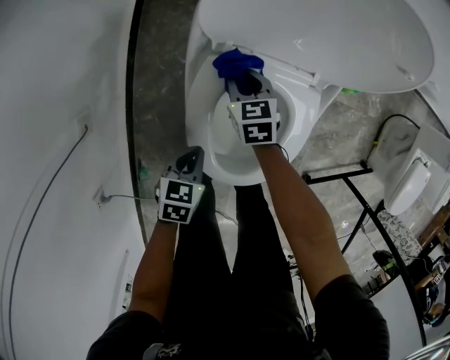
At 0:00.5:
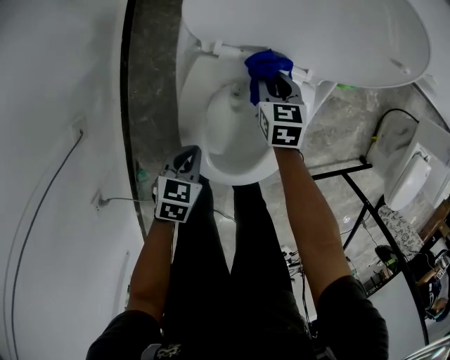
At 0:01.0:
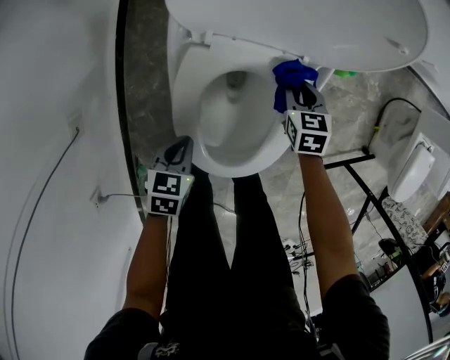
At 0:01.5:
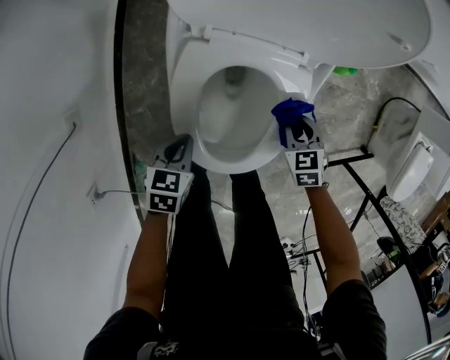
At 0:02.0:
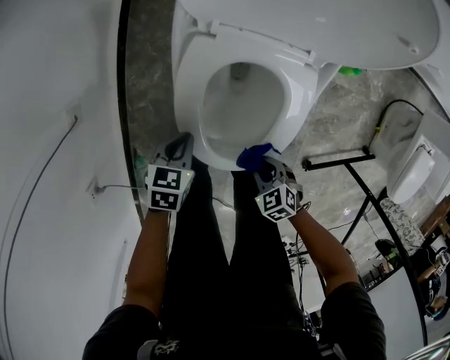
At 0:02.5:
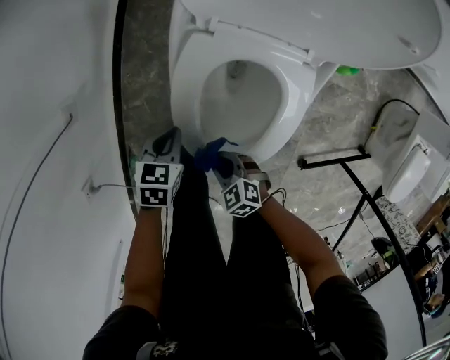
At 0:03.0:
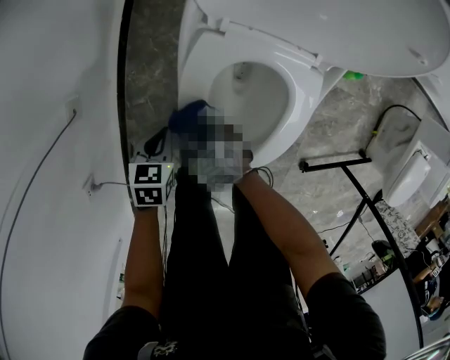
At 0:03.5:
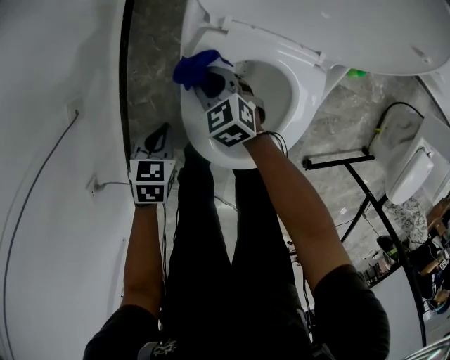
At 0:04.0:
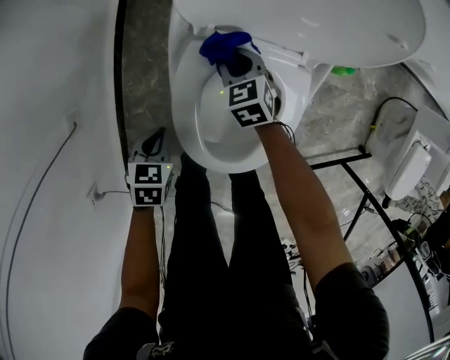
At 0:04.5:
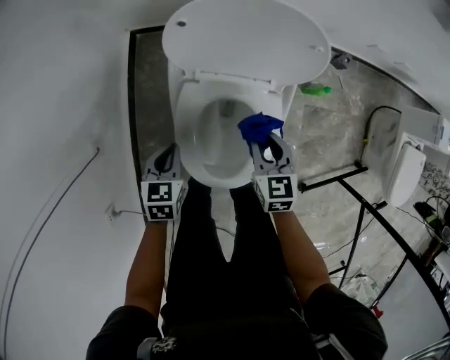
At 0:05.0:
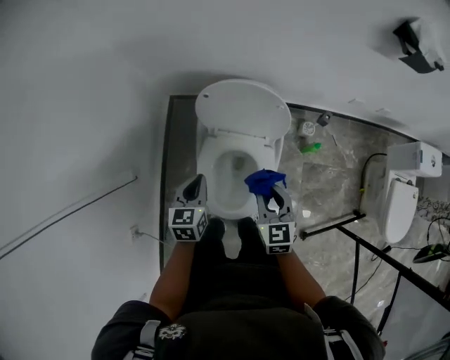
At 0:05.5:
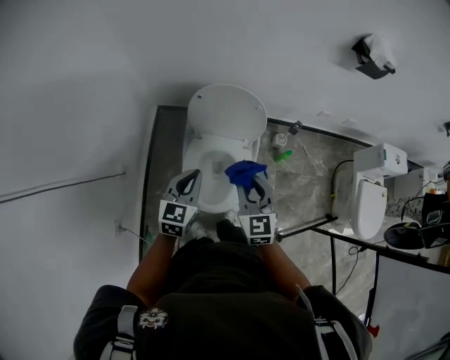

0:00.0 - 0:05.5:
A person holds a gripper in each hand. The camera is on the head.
0:00.0 - 0:02.0: The right gripper shifts by roughly 35 cm, and changes its angle by roughly 30 degrees.
0:02.0 - 0:03.5: The right gripper moves forward and to the left, roughly 30 cm, while the left gripper heads to the left, covering roughly 5 cm.
0:03.5 - 0:05.5: The right gripper goes approximately 50 cm upward and to the right, and tips its fingers upward by roughly 30 degrees, while the left gripper moves upward, about 40 cm, and tilts its fingers roughly 40 degrees upward.

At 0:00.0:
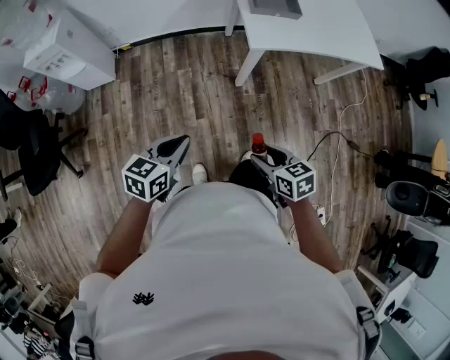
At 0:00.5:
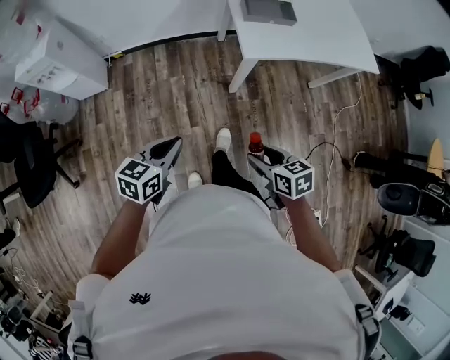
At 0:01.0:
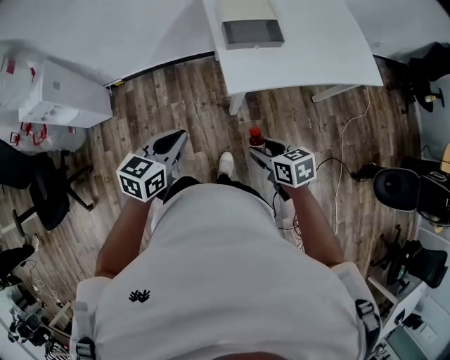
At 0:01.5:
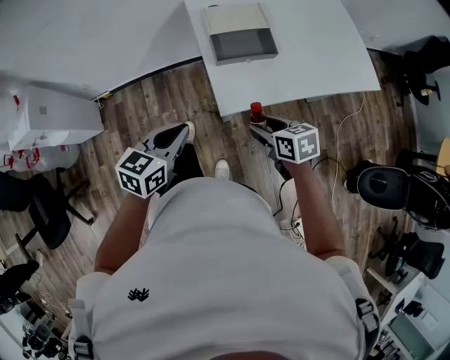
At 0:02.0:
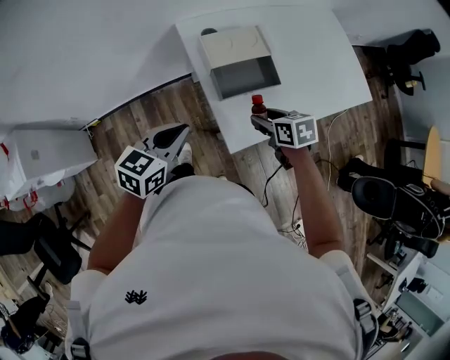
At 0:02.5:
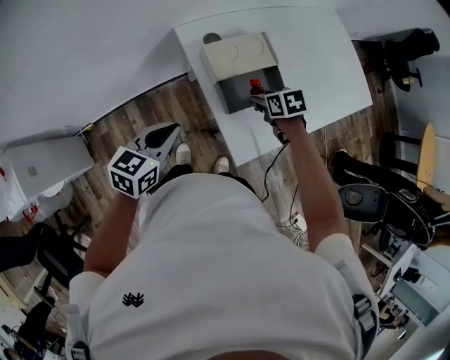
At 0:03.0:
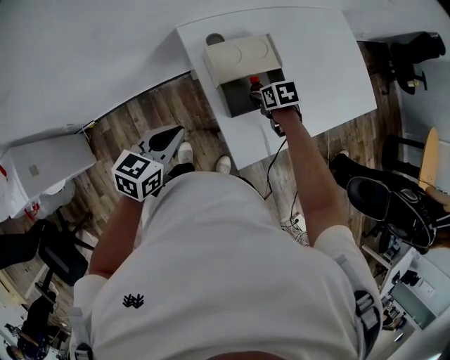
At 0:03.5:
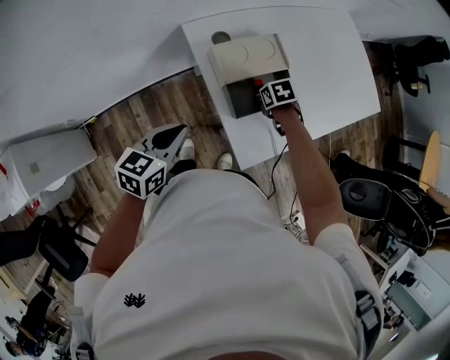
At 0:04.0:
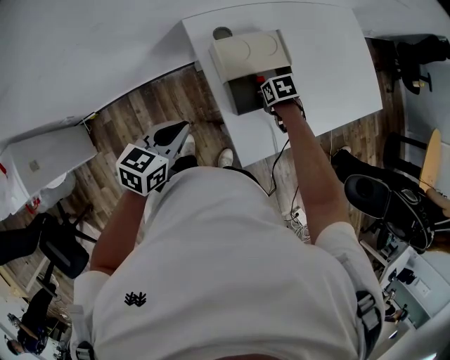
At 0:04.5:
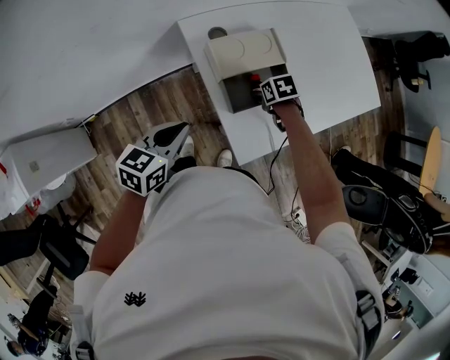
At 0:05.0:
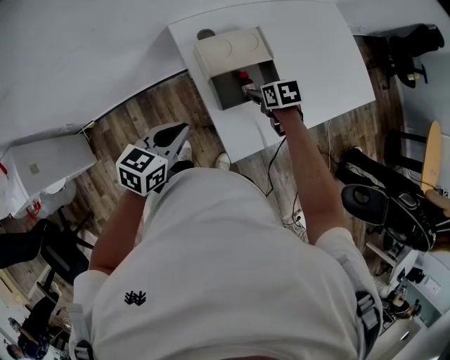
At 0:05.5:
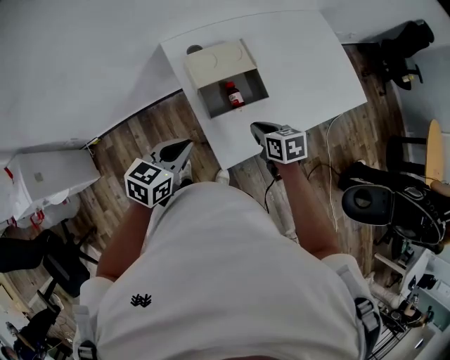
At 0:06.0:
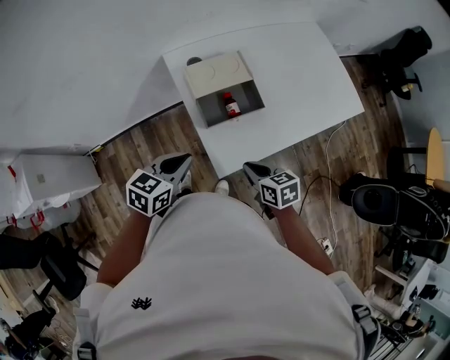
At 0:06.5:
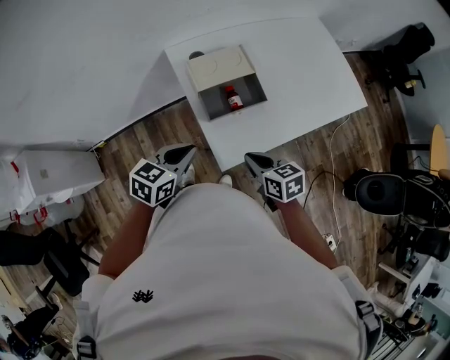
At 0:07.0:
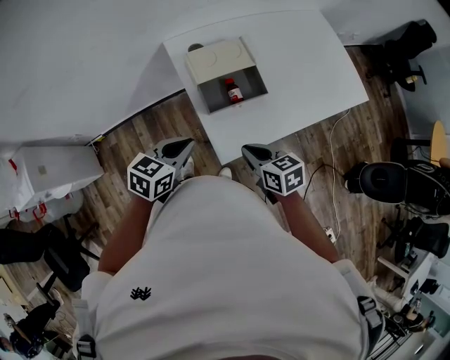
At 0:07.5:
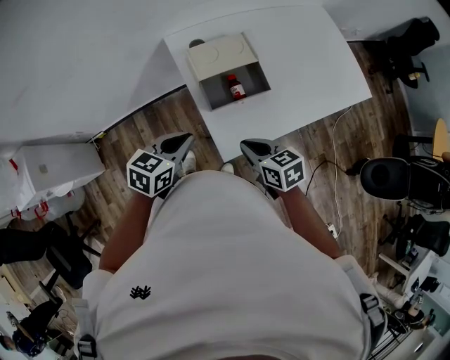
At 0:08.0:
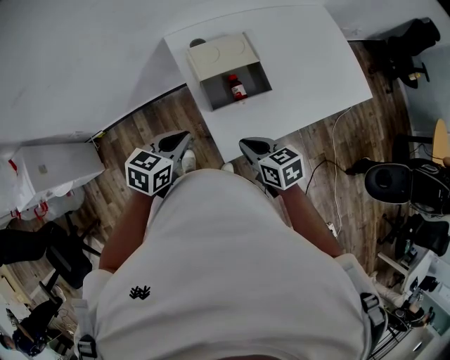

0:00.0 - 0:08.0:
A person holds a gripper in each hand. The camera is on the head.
0:00.0 - 0:02.0: The pair of grippers is taken forward, roughly 40 cm.
0:02.0 - 0:04.0: The left gripper shifts by approximately 5 cm, while the right gripper is displaced downward by roughly 10 cm, and turns by some 30 degrees.
0:04.0 - 0:06.0: The left gripper ends up approximately 10 cm from where it was. Meanwhile the right gripper moves some 25 cm, points its fingers about 30 degrees further upward, and closes up.
0:06.0 - 0:08.0: The right gripper changes place by roughly 5 cm.

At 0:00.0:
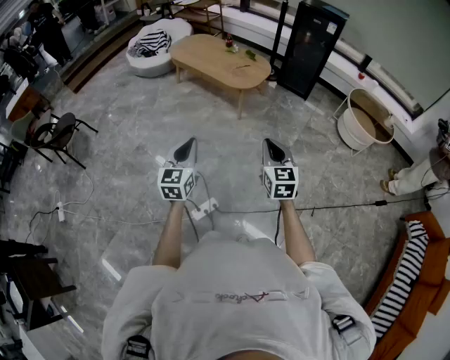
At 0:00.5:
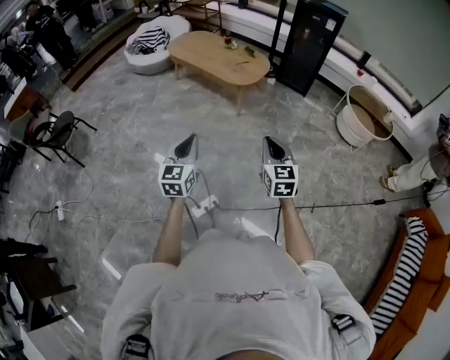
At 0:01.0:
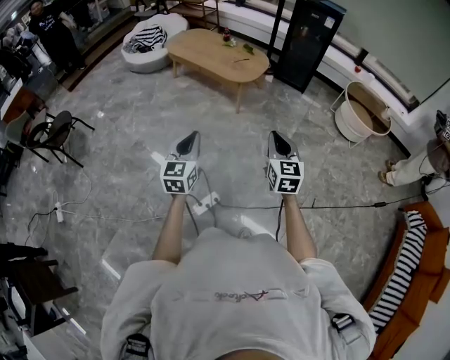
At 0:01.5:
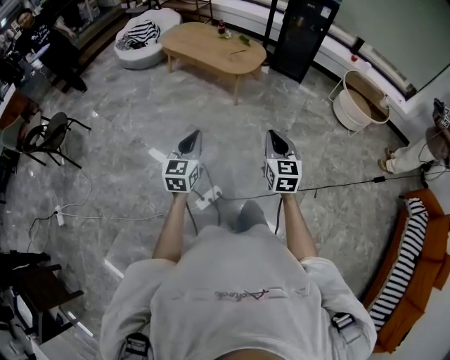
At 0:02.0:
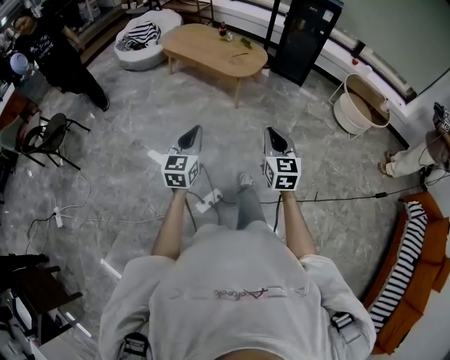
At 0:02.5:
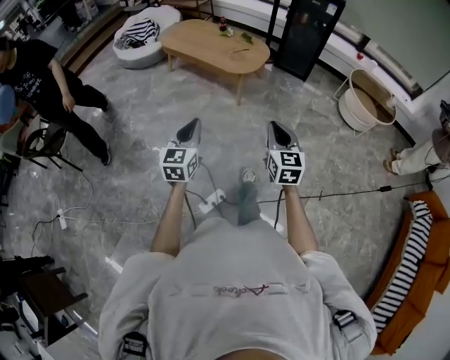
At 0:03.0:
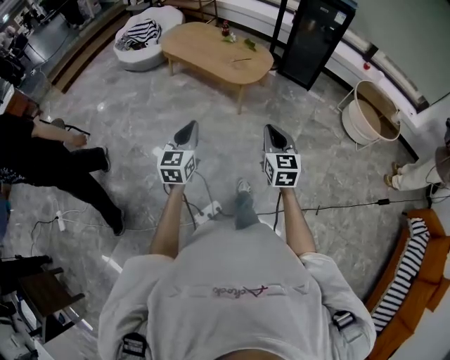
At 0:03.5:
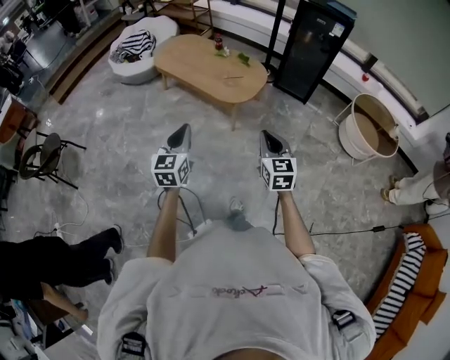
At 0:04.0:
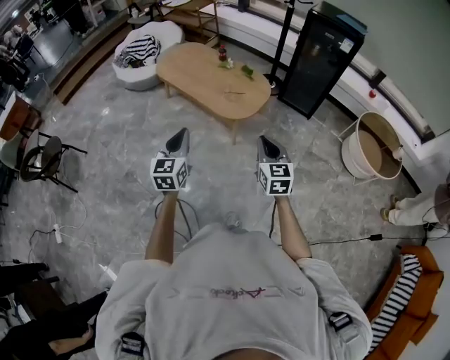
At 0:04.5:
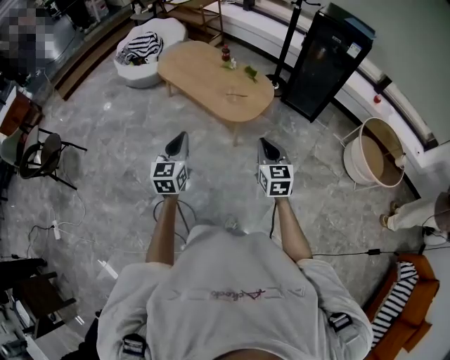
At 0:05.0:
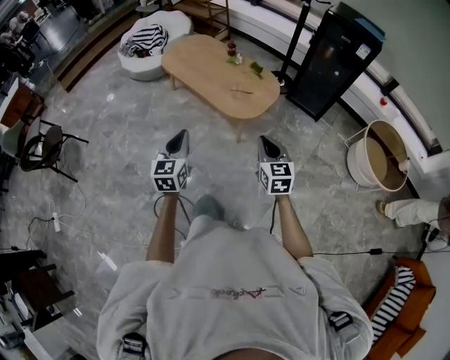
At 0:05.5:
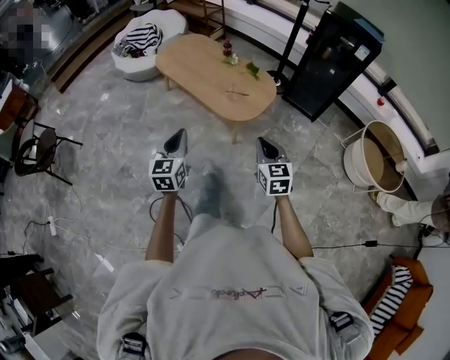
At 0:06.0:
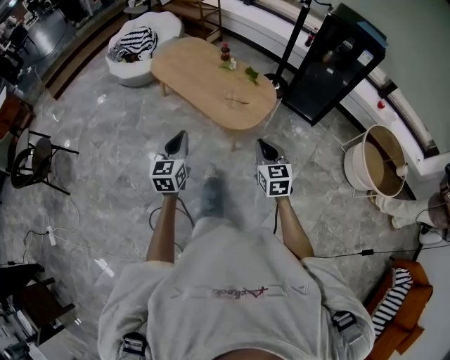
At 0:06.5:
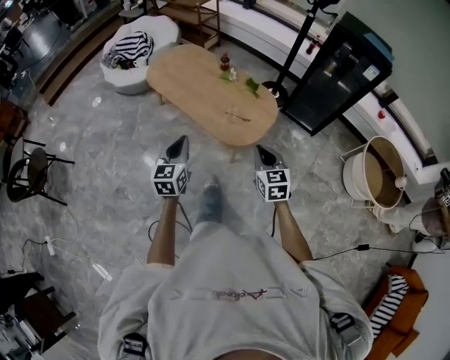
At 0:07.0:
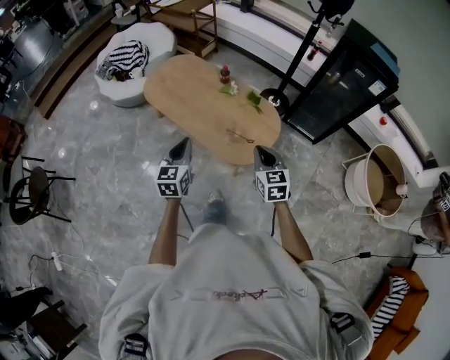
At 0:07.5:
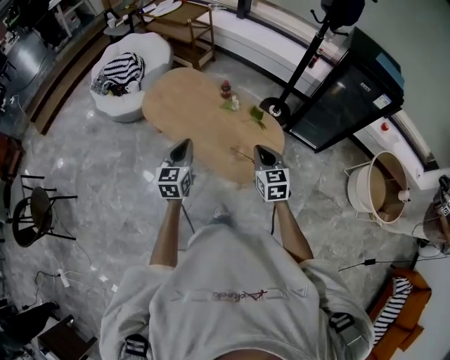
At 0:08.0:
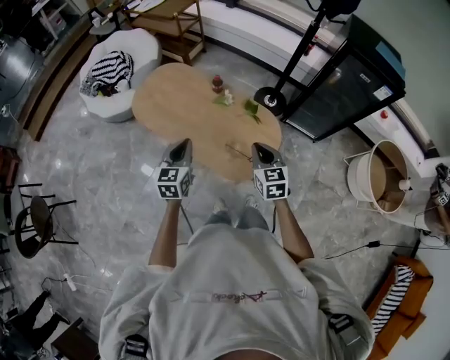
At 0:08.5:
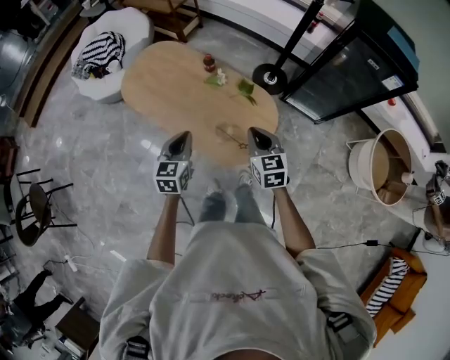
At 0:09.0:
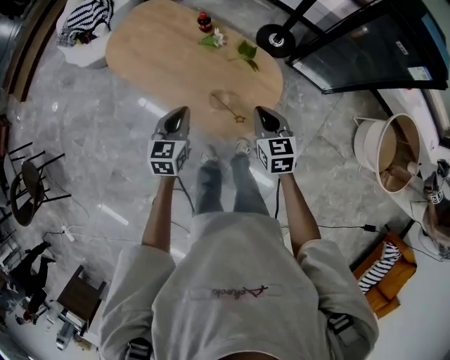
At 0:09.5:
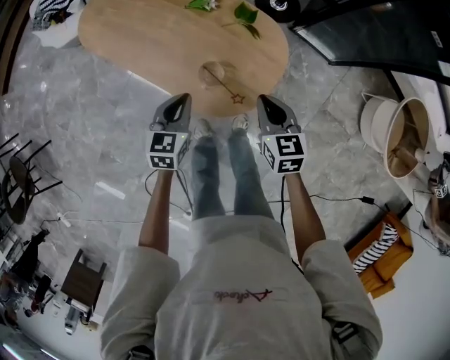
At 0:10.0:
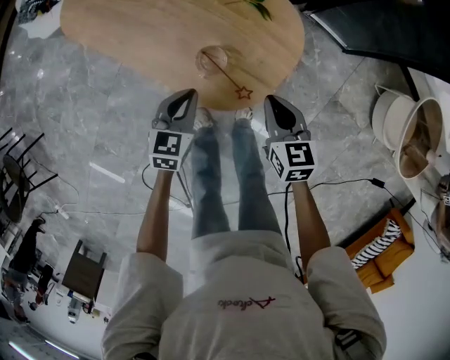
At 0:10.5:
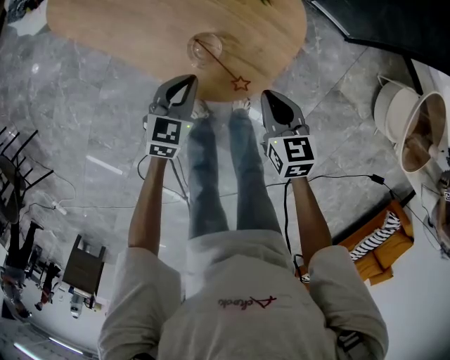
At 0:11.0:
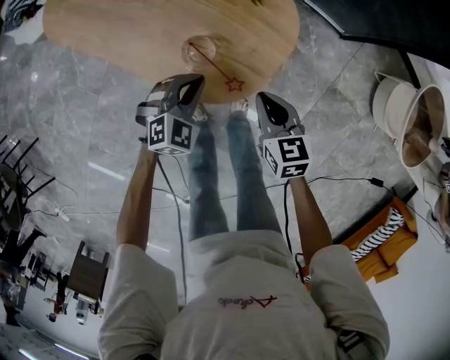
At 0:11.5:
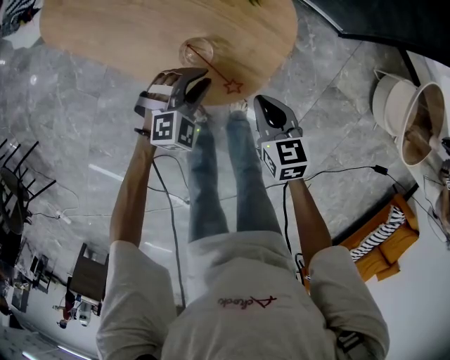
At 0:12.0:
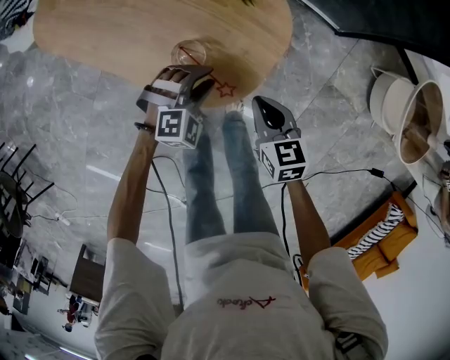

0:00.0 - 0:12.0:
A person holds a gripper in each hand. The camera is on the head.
0:00.0 - 0:02.0: The two grippers go roughly 5 cm to the left.
0:02.0 - 0:04.0: The two grippers travel together, forward, some 40 cm.
0:04.0 - 0:06.0: The grippers both shift forward and downward by roughly 20 cm.
0:06.0 - 0:08.0: The pair of grippers is taken forward, some 40 cm.
0:08.0 - 0:10.0: The right gripper moves downward, roughly 30 cm; the left gripper is displaced downward and to the right by about 40 cm, and rotates roughly 20 degrees.
0:10.0 - 0:12.0: The left gripper shifts roughly 10 cm to the right and downward, rotates around the line of its fingers by approximately 60 degrees, clockwise from behind, and opens its fingers. The right gripper shifts roughly 5 cm downward.

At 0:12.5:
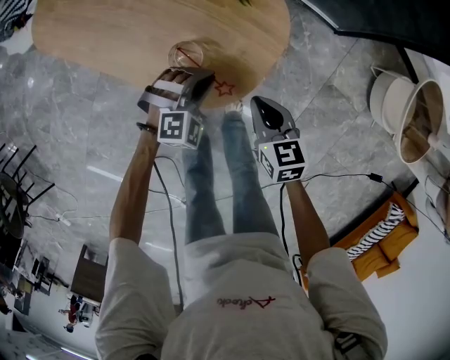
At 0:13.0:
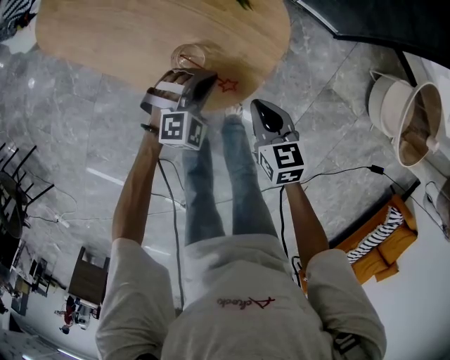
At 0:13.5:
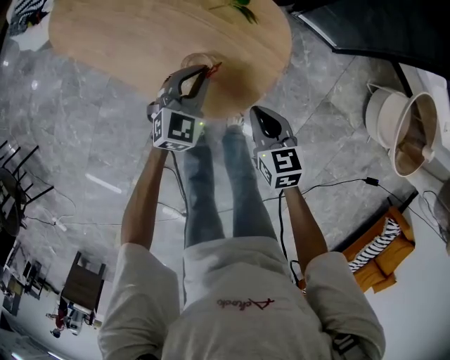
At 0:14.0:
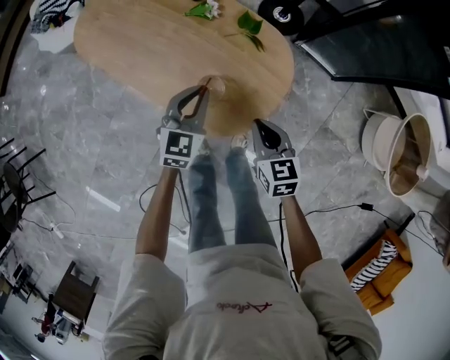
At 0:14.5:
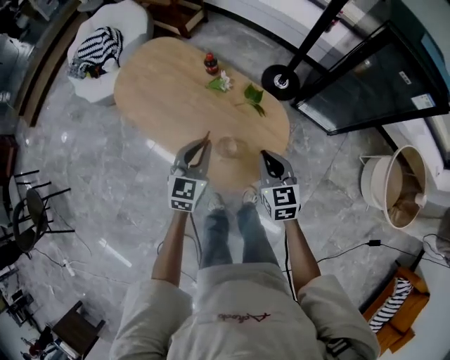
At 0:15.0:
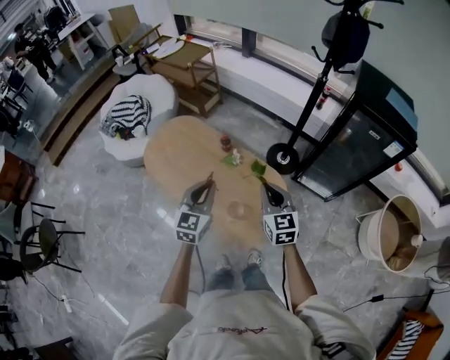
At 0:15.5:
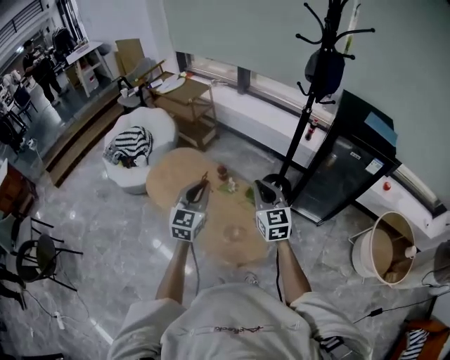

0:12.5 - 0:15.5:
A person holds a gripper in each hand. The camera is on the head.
0:12.5 - 0:14.0: The right gripper is displaced upward by roughly 10 cm, while the left gripper shifts approximately 15 cm upward and to the left, and rotates around the line of its fingers by approximately 50 degrees, counterclockwise from behind.
0:14.0 - 0:15.5: Both grippers move upward, roughly 40 cm. The right gripper angles its fingers upward, by approximately 30 degrees, while the left gripper rotates roughly 20 degrees.
